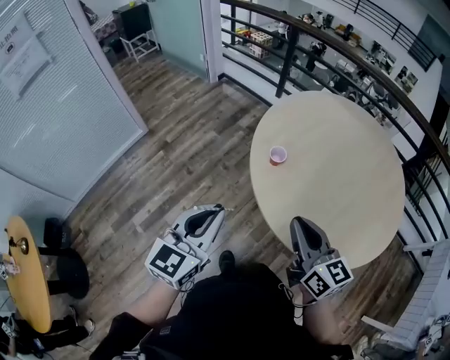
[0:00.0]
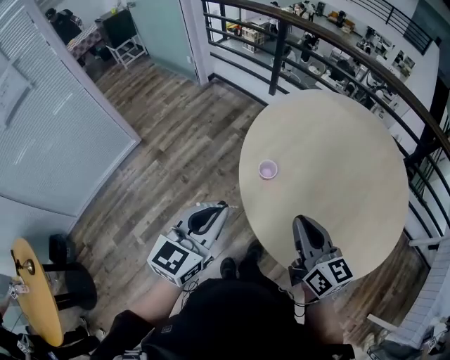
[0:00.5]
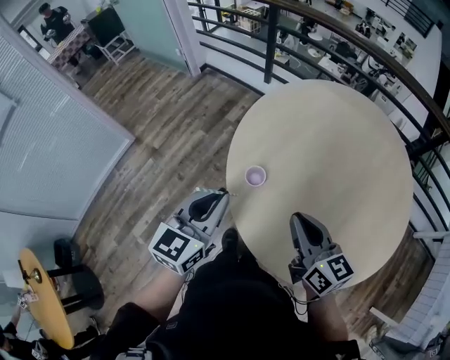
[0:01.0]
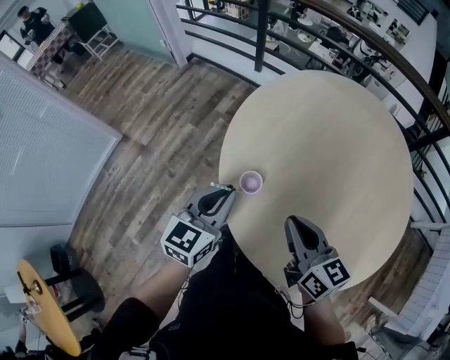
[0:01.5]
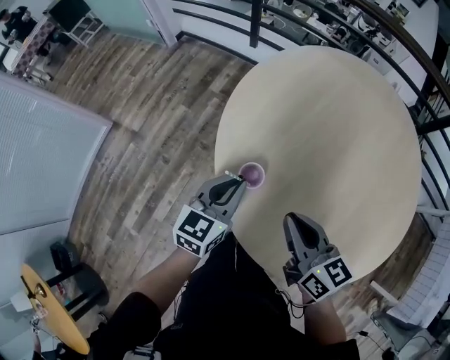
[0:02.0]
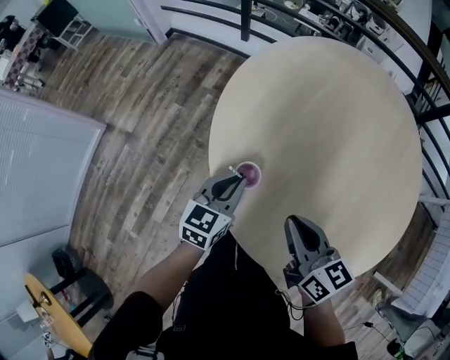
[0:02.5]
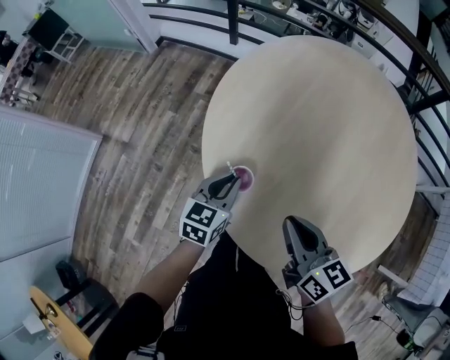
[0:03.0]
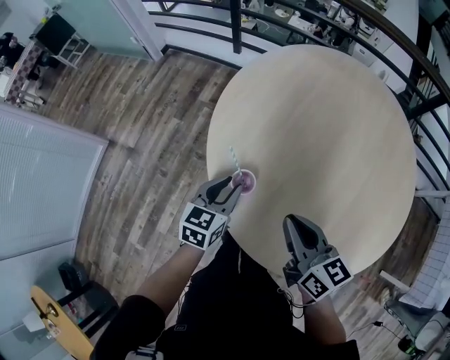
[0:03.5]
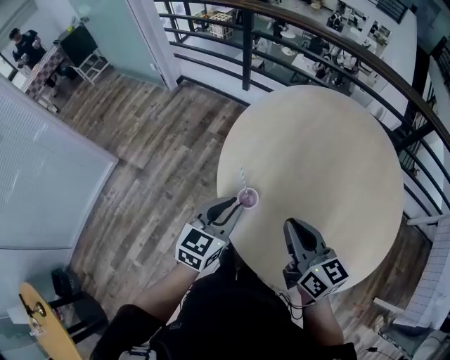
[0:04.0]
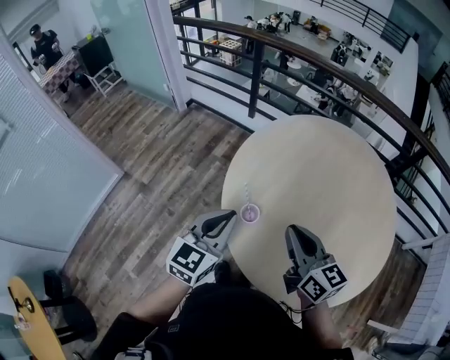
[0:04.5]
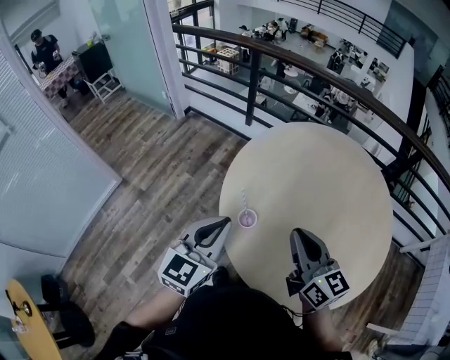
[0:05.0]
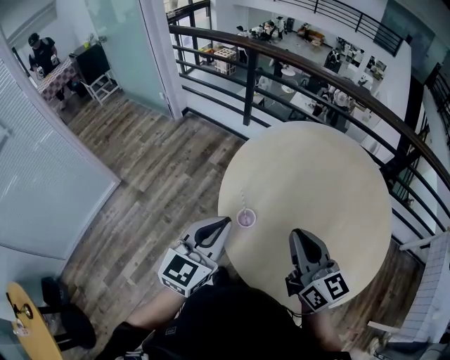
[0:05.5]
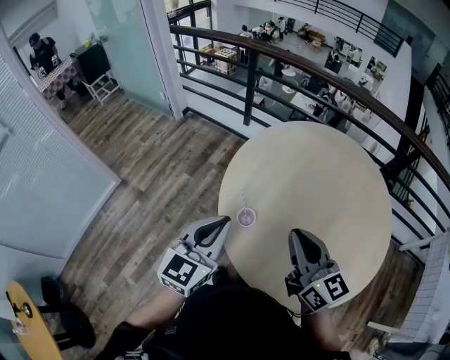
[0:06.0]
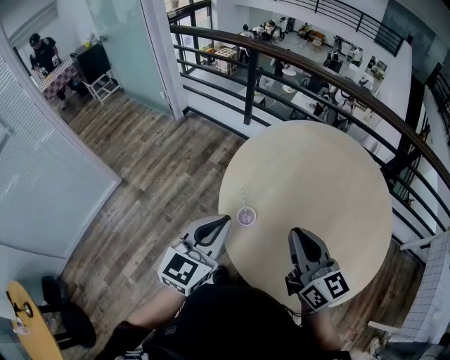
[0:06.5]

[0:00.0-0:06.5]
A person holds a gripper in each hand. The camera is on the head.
0:00.0 to 0:02.0: The right gripper moves forward and downward, about 25 cm. The left gripper goes some 40 cm forward, downward and to the right, and changes its angle by some 20 degrees.
0:02.0 to 0:04.5: The two grippers go approximately 15 cm upward.
0:04.5 to 0:06.5: The right gripper ends up about 5 cm from where it was.

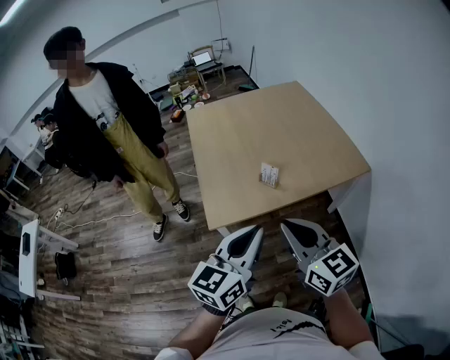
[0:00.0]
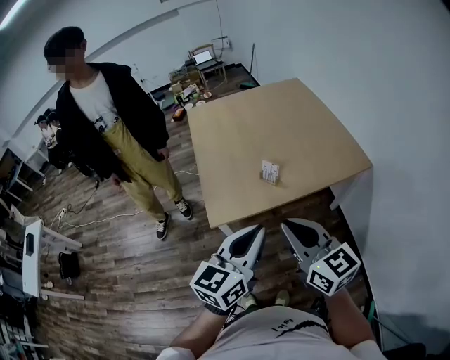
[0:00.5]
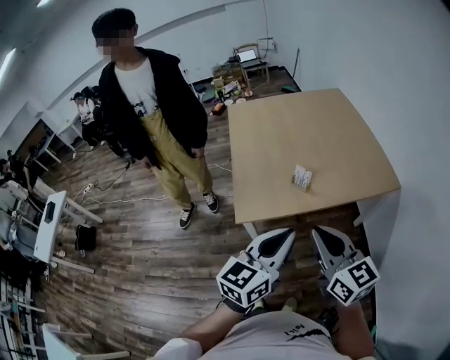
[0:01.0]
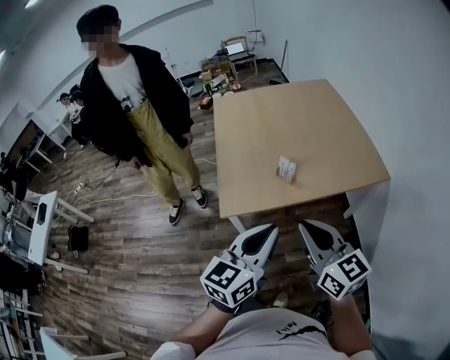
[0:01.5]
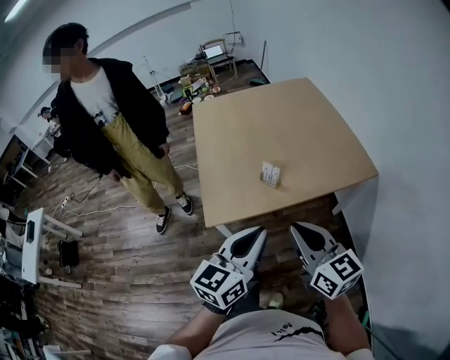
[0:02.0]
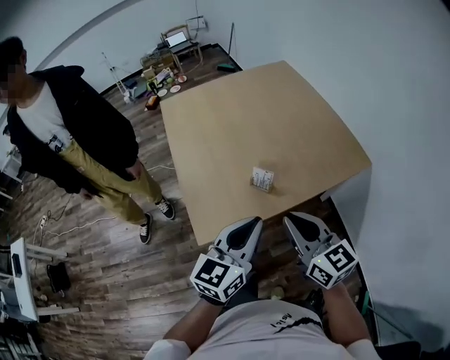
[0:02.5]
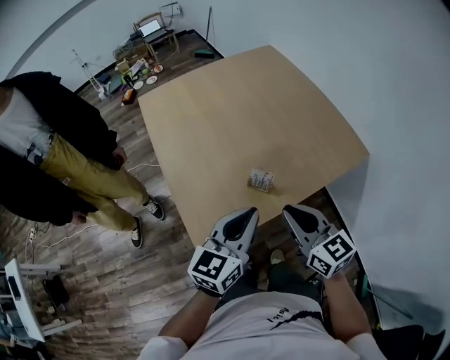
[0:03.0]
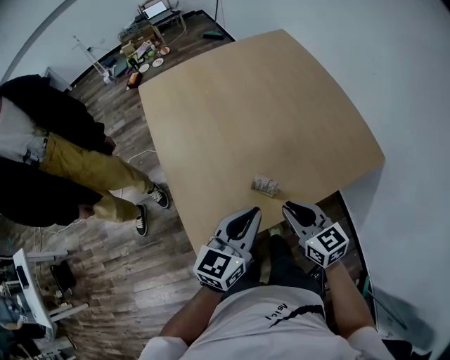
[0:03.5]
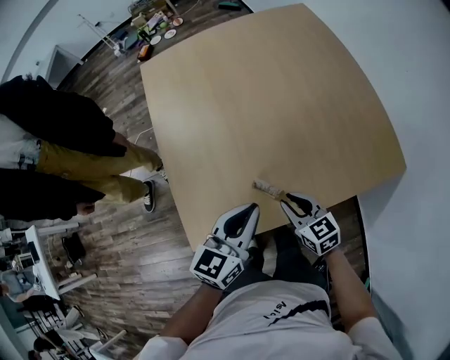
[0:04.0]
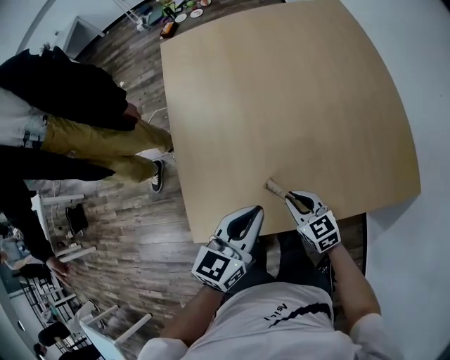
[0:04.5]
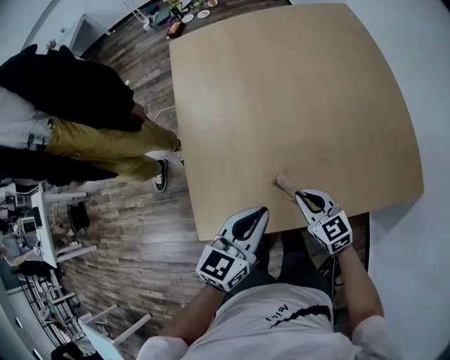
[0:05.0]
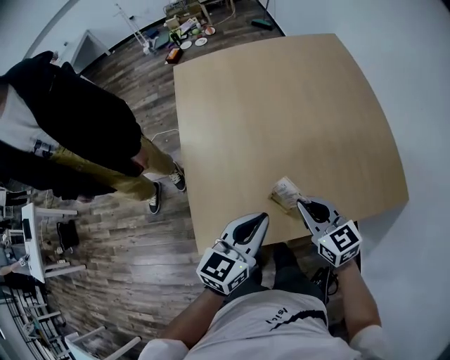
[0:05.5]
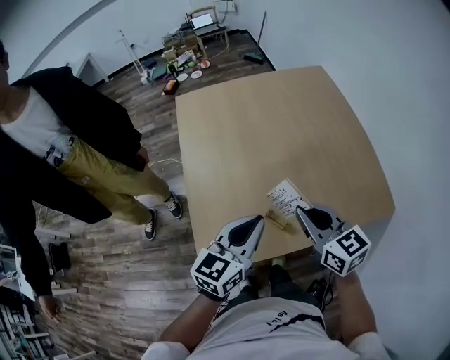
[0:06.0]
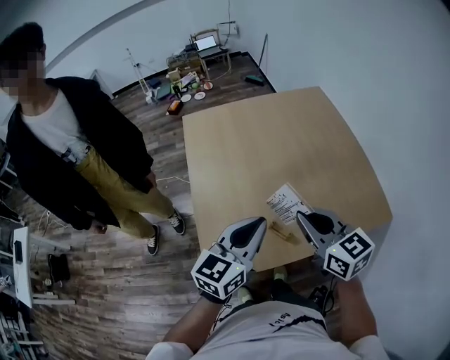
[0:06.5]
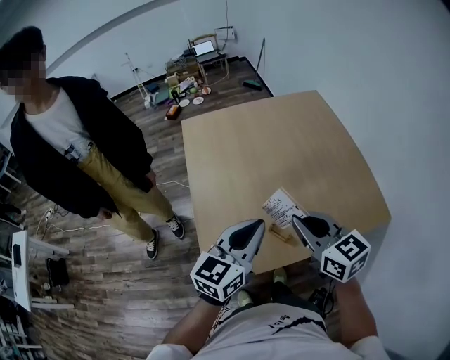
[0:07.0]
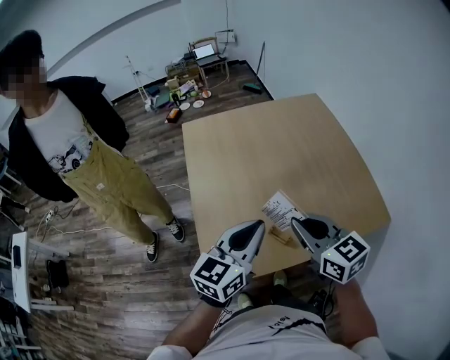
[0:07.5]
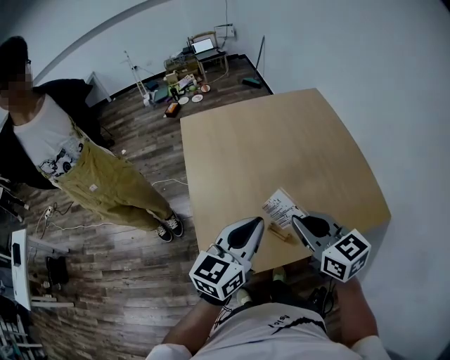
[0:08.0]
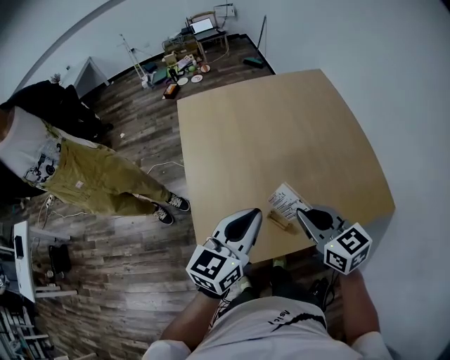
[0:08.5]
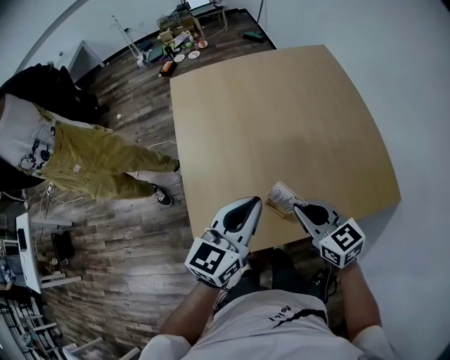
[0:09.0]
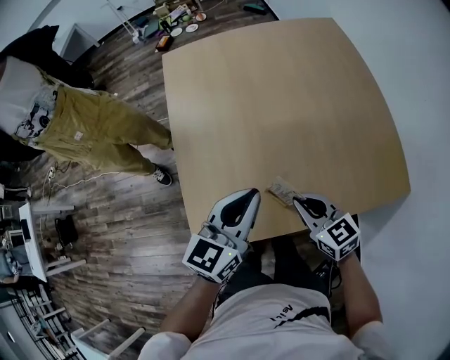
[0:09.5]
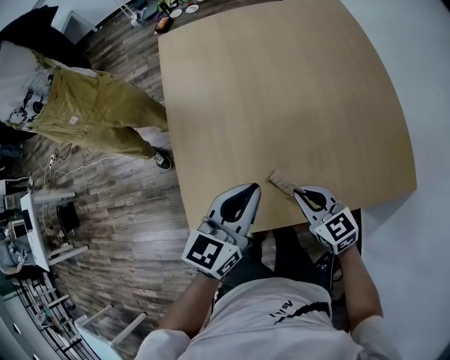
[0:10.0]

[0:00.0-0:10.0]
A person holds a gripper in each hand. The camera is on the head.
0:00.0 to 0:02.0: The right gripper heads to the right and downward, covering some 10 cm; the left gripper ends up approximately 5 cm from where it was.
0:02.0 to 0:04.0: Both grippers travel together forward and downward, roughly 40 cm. The right gripper changes its angle by about 30 degrees.
0:04.0 to 0:06.0: The right gripper is displaced upward by roughly 25 cm; the left gripper heads upward and to the left, covering approximately 10 cm.
0:06.0 to 0:08.0: The two grippers go approximately 5 cm upward.
0:08.0 to 0:10.0: The right gripper heads downward, covering some 25 cm. The left gripper goes roughly 15 cm downward.

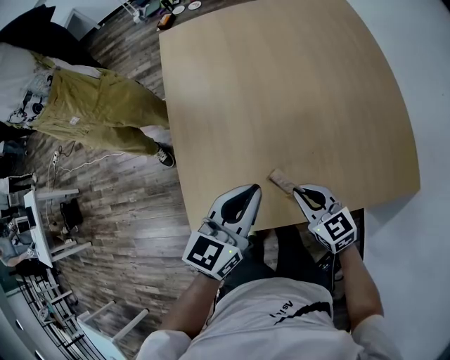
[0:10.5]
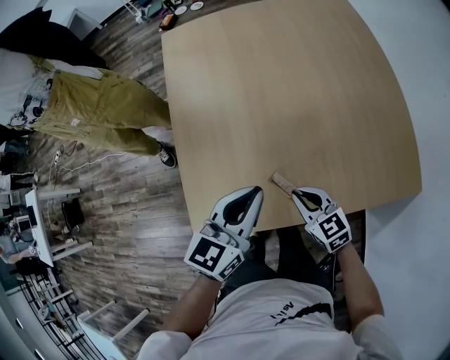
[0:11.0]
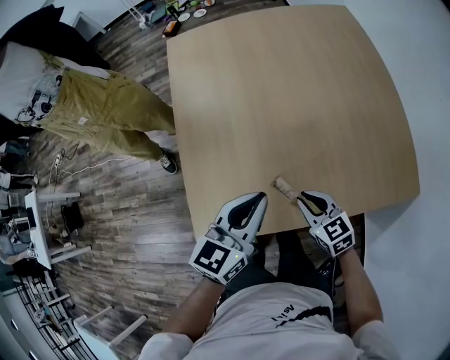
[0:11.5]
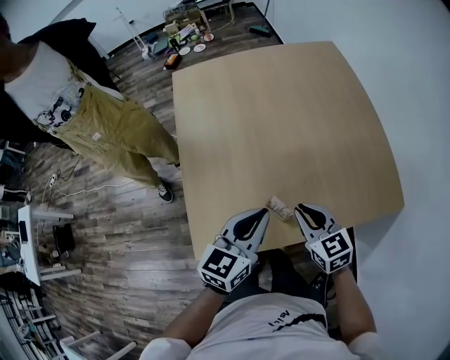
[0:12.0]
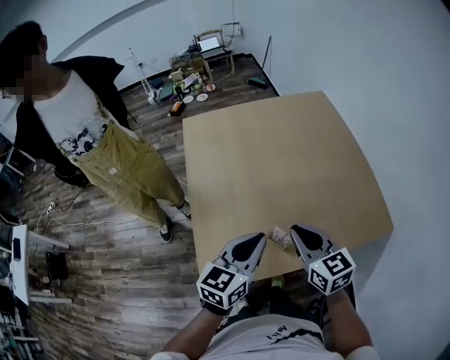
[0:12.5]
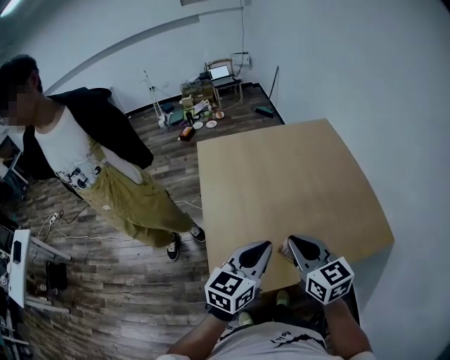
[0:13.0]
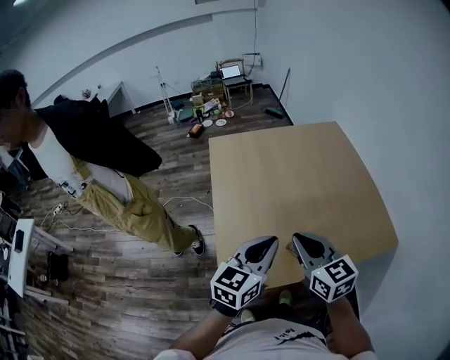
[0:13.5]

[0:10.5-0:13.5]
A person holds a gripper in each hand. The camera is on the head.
0:10.5 to 0:12.0: The right gripper heads upward, covering some 5 cm.
0:12.0 to 0:13.5: The grippers both shift upward and to the left by about 20 cm.

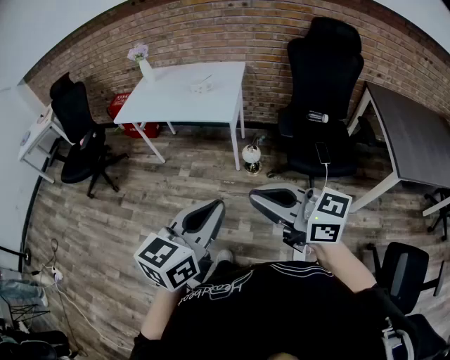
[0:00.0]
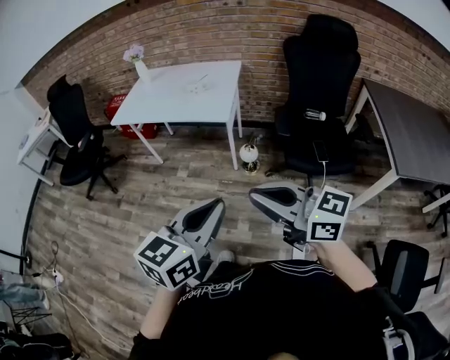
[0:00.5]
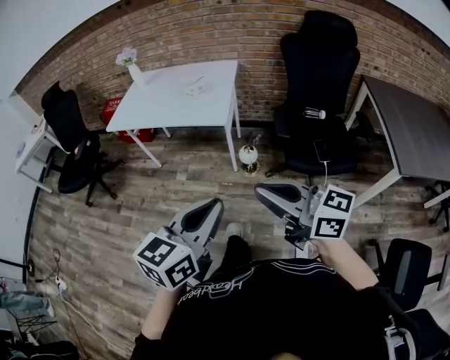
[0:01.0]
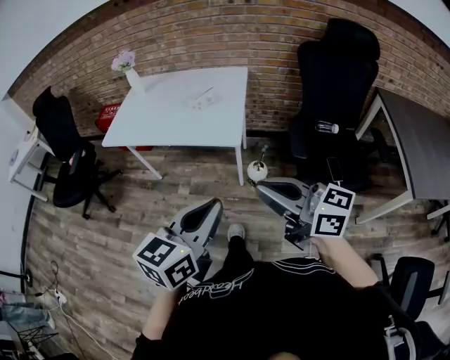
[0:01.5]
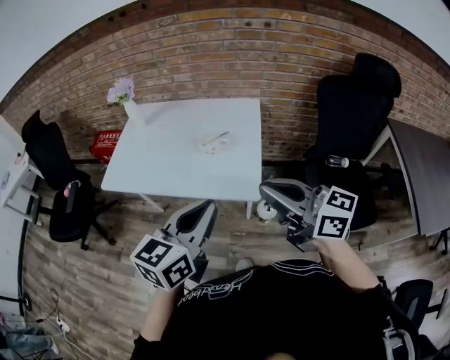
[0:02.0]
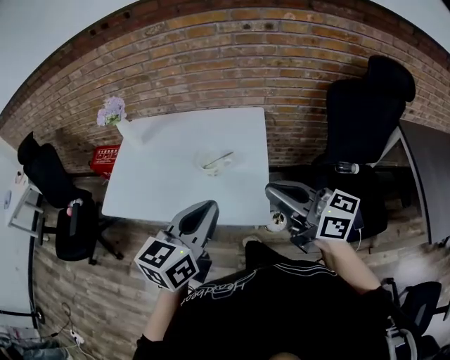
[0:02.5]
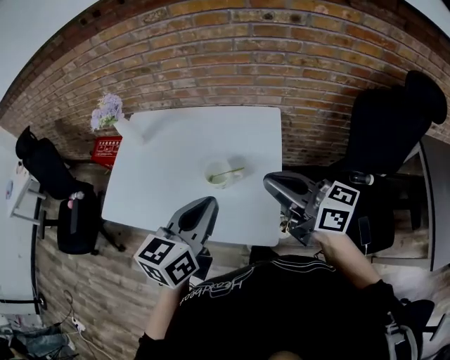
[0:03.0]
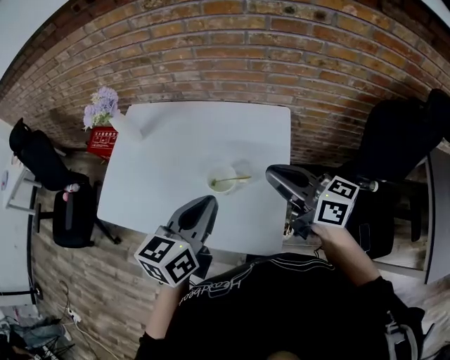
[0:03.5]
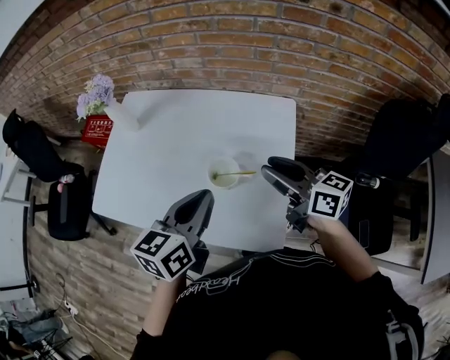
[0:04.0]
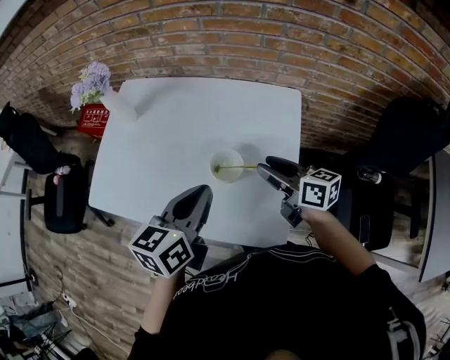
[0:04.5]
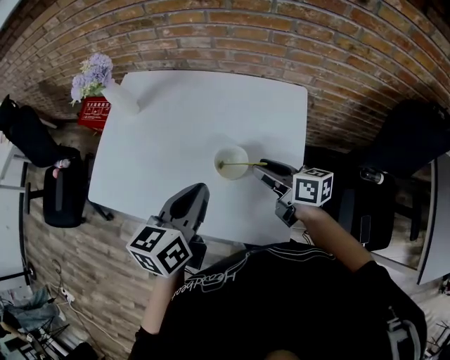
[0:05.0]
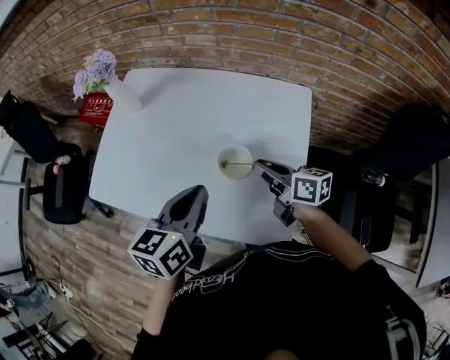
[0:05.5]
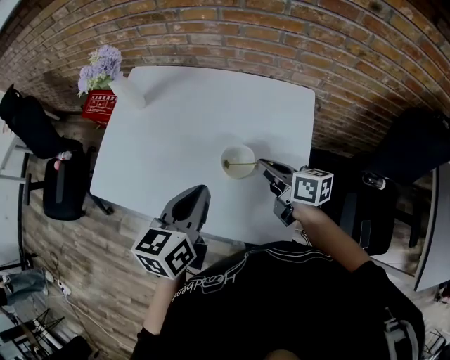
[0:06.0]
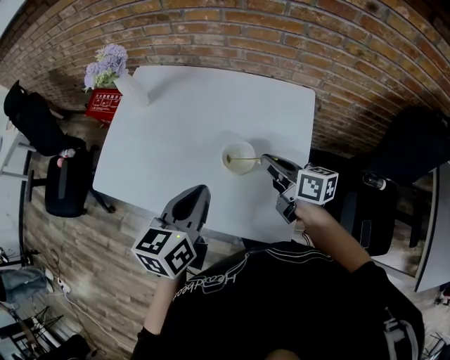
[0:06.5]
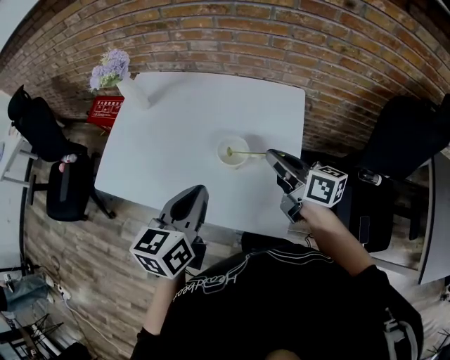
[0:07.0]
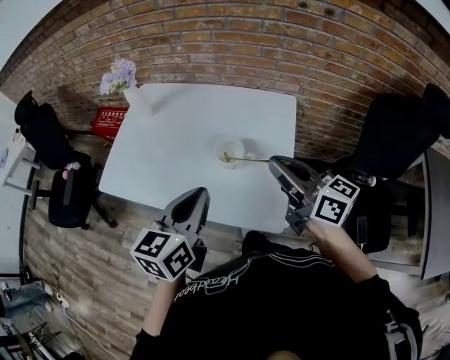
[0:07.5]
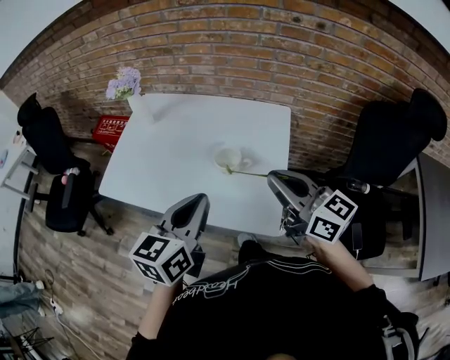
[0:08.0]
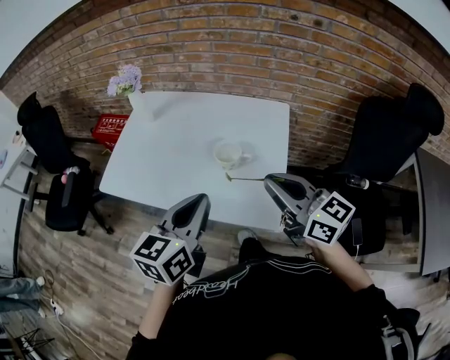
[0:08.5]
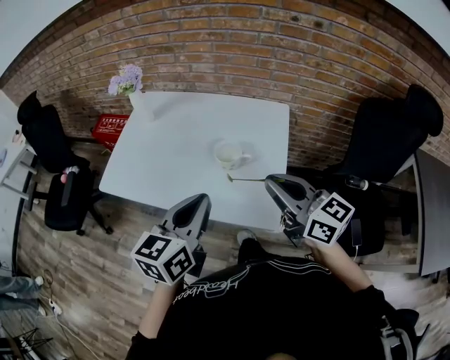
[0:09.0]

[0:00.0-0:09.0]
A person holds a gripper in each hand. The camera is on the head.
0:00.0 to 0:02.0: The pair of grippers is taken forward, roughly 40 cm.
0:02.0 to 0:04.5: The left gripper heads forward, covering roughly 35 cm, and rotates approximately 20 degrees. Meanwhile the right gripper shifts about 40 cm forward and downward, turns by approximately 30 degrees, and opens up.
0:04.5 to 0:07.0: The right gripper moves upward, roughly 5 cm, and closes its fingers. Meanwhile the left gripper travels backward by roughly 5 cm.
0:07.0 to 0:09.0: The right gripper goes about 20 cm backward and upward, and swivels about 30 degrees. The left gripper travels backward and upward by approximately 10 cm.
